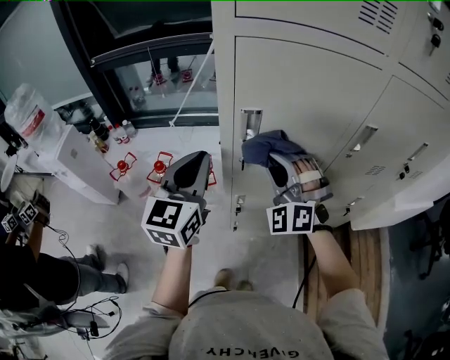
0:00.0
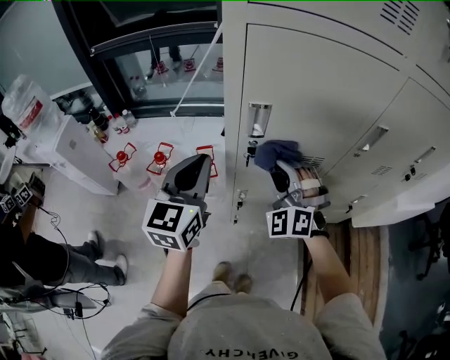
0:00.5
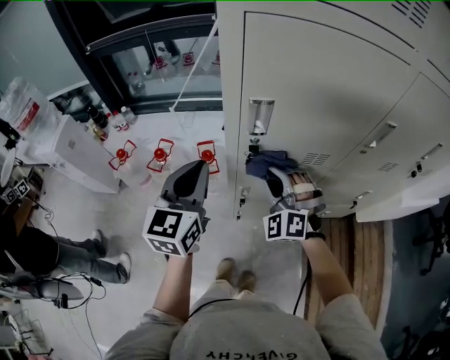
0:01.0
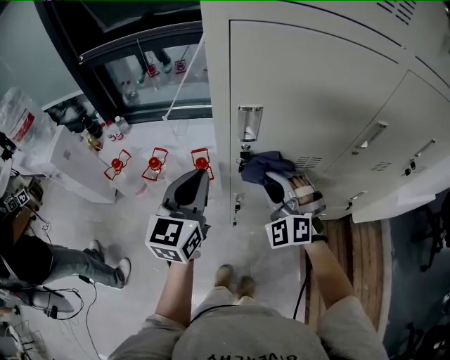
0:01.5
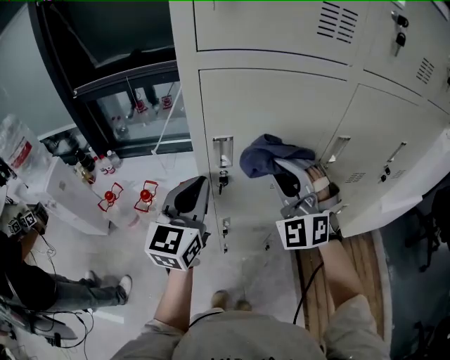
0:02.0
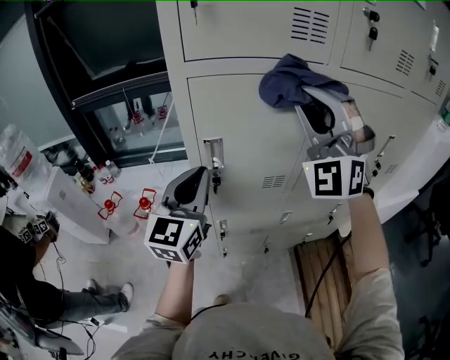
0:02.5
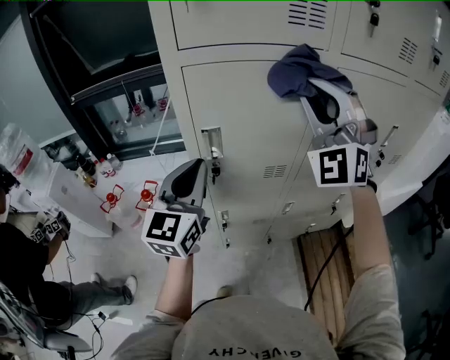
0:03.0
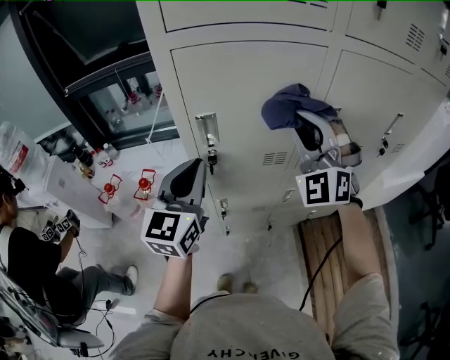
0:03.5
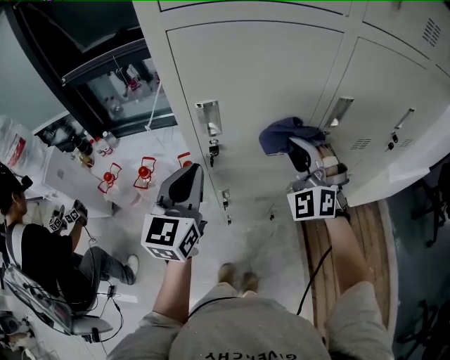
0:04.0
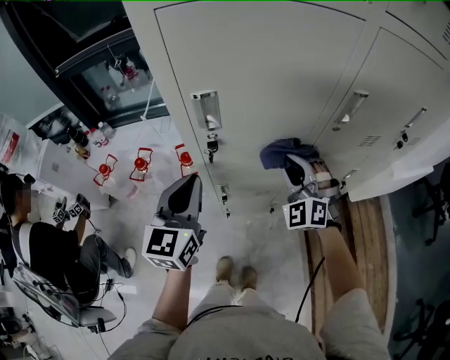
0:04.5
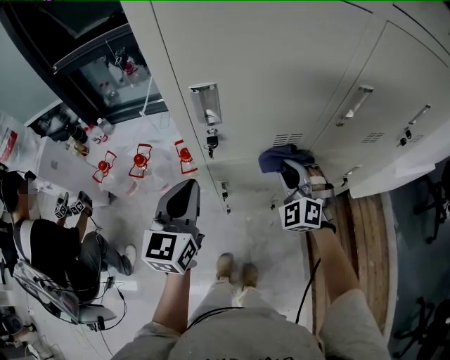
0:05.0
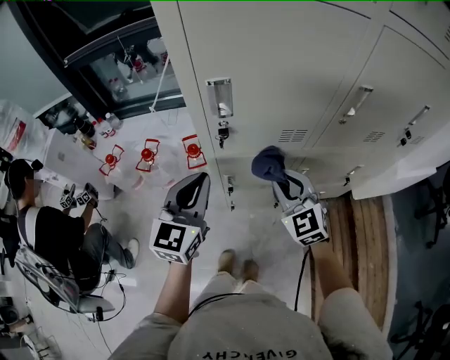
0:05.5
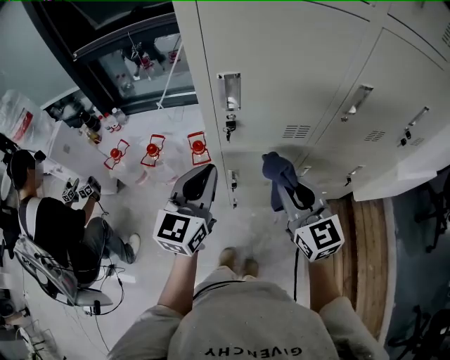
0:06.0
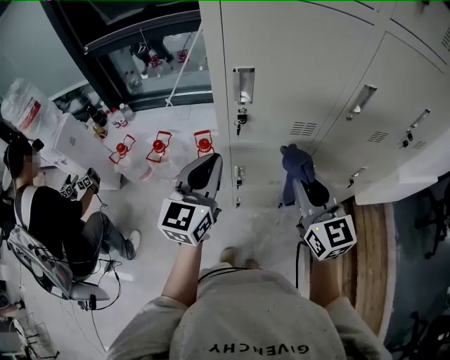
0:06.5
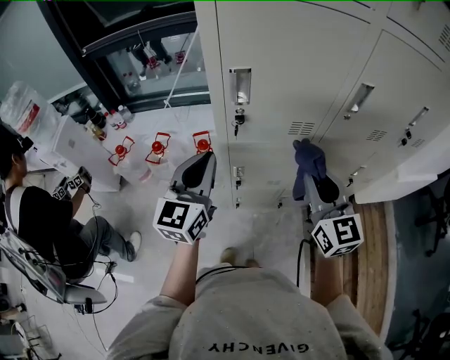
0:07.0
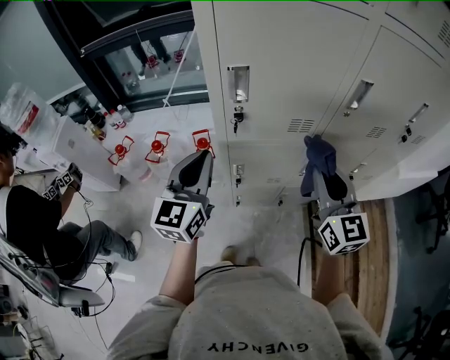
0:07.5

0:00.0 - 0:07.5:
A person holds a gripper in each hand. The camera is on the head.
0:00.0 - 0:02.0: The right gripper moves upward and to the right, roughly 10 cm.
0:02.0 - 0:04.0: The right gripper shifts roughly 5 cm to the right, and travels upward and back again, about 20 cm each way.
0:04.0 - 0:05.5: The right gripper travels downward and backward by some 15 cm, and swivels roughly 40 degrees; the left gripper heads downward, covering some 5 cm.
0:05.5 - 0:07.5: The right gripper travels upward, to the right and backward by approximately 15 cm, and rotates some 30 degrees.

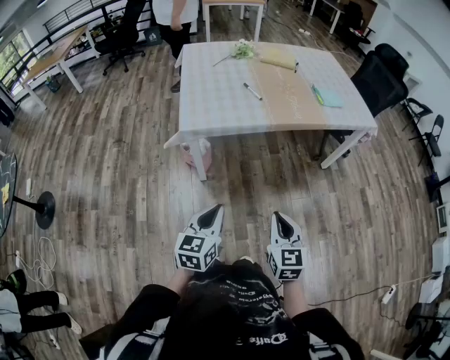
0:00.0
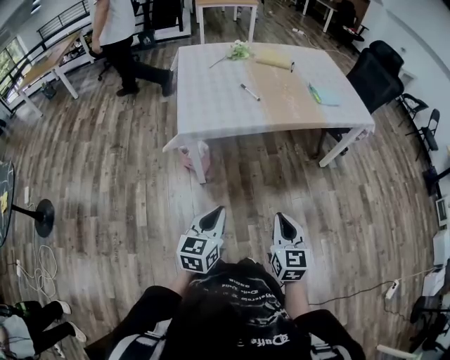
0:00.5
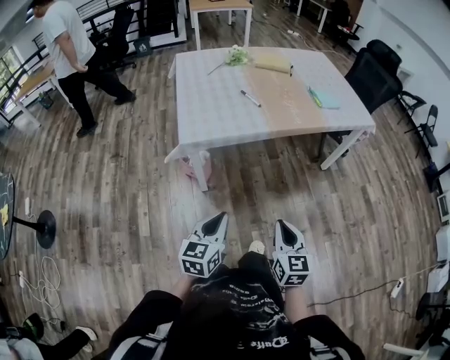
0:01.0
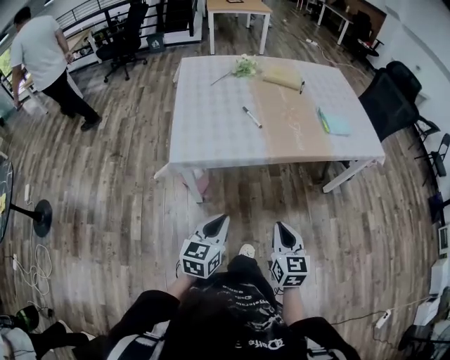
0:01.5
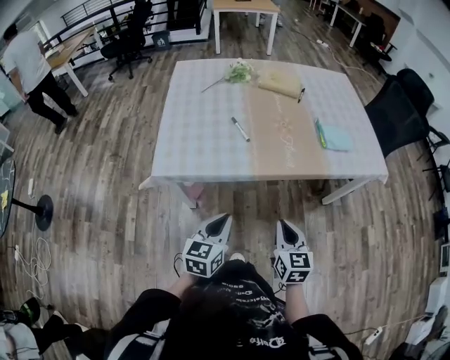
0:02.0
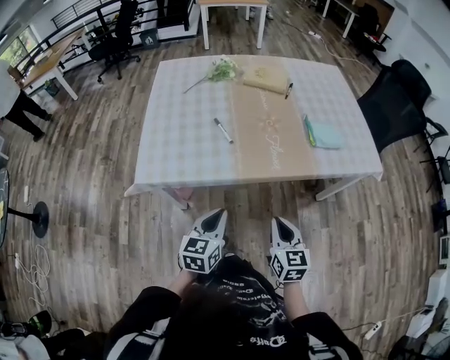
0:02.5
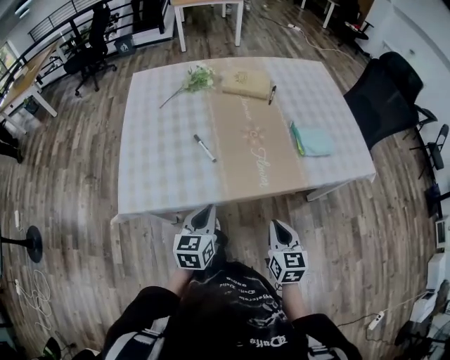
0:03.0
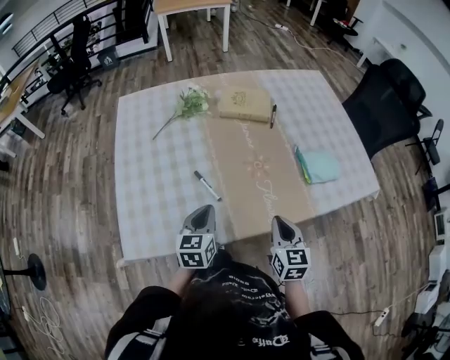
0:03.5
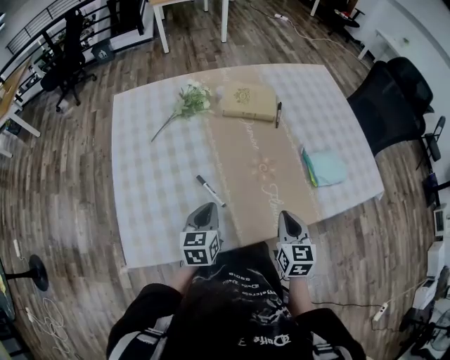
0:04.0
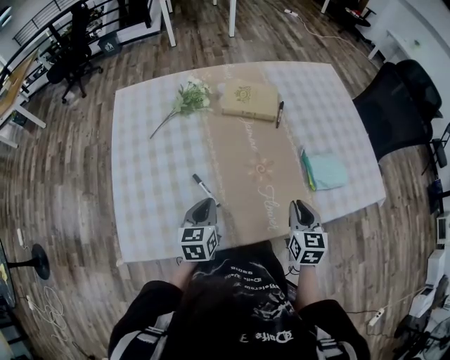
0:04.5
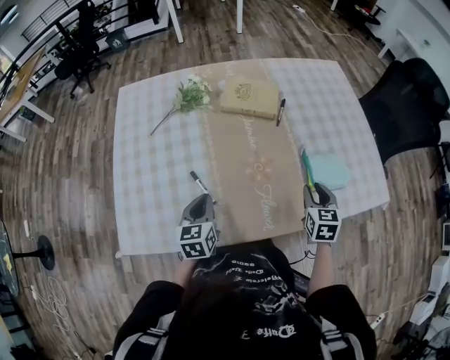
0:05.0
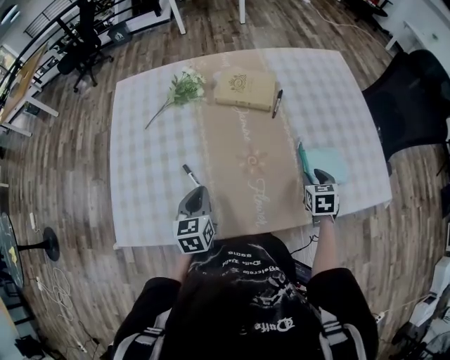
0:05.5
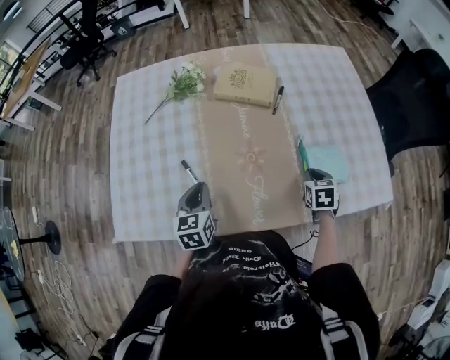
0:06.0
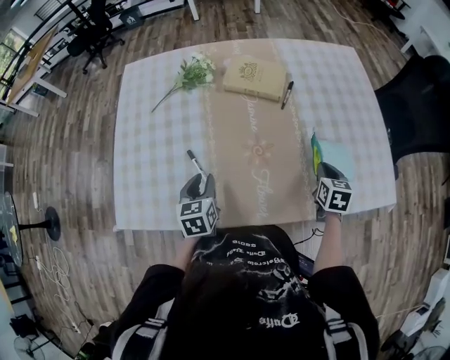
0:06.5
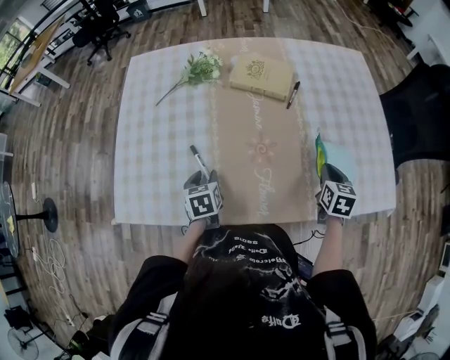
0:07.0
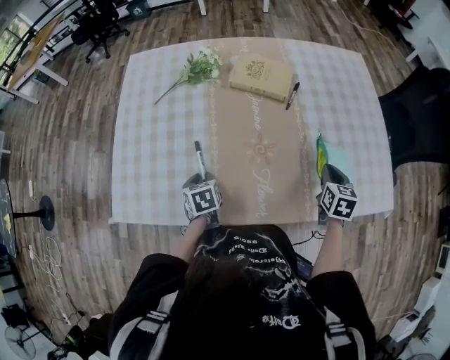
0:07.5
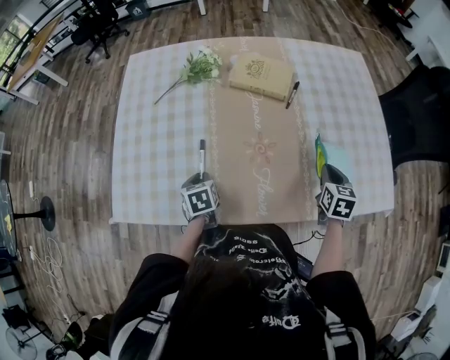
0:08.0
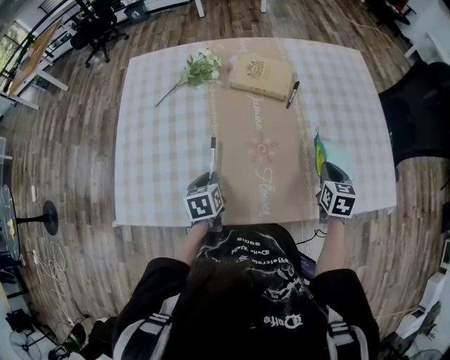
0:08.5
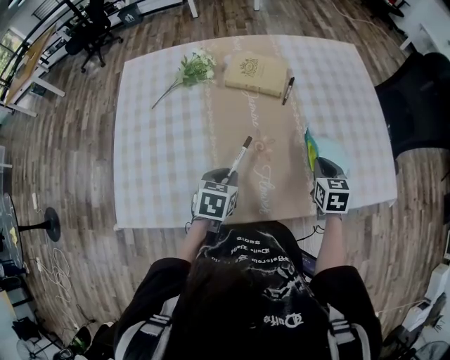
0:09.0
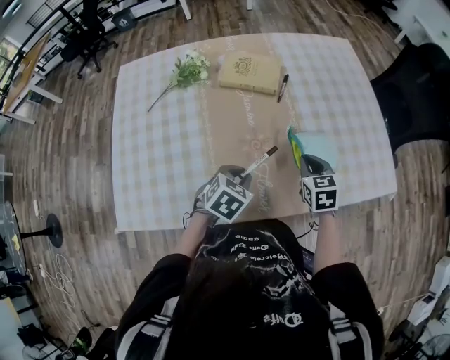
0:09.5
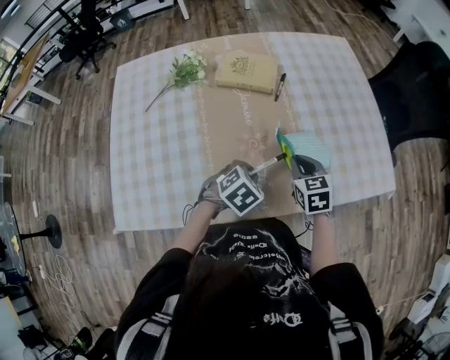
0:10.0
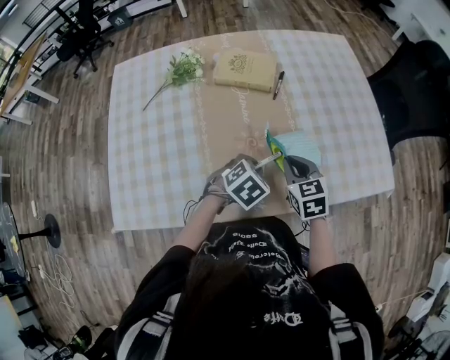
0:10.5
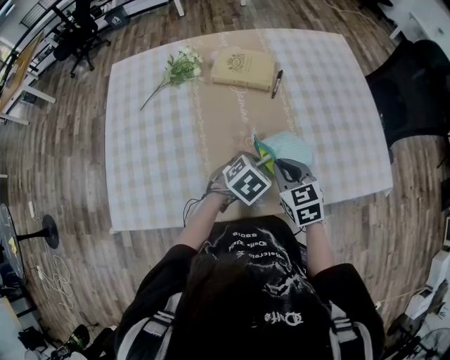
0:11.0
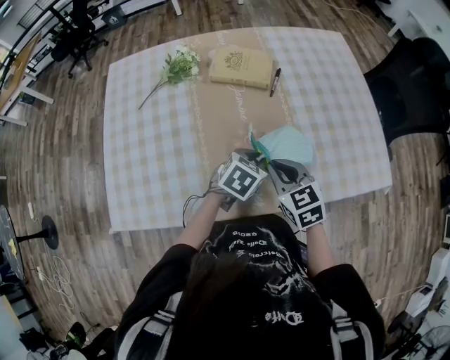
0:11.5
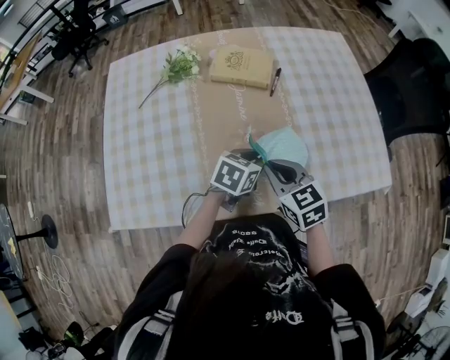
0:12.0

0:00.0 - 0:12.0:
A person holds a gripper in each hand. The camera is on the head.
0:00.0 - 0:02.0: The left gripper shifts roughly 30 cm forward and to the right. The right gripper goes roughly 30 cm forward.
0:02.0 - 0:04.0: Both grippers travel together forward, some 40 cm.
0:04.0 - 0:06.0: The left gripper heads to the right, covering approximately 5 cm, while the right gripper shifts approximately 30 cm to the right, forward and downward, turns by about 30 degrees, and opens, then closes once more.
0:06.0 - 0:08.0: The right gripper is displaced upward by approximately 5 cm, while the left gripper shifts some 10 cm downward, and swivels roughly 30 degrees.
0:08.0 - 0:10.0: The right gripper heads to the left, covering approximately 10 cm. The left gripper heads to the right, covering approximately 20 cm, and twists roughly 60 degrees clockwise, seen from behind.
0:10.0 - 0:12.0: The right gripper is displaced to the left, upward and backward by roughly 10 cm; the left gripper changes place by roughly 5 cm, and changes its angle by roughly 30 degrees.

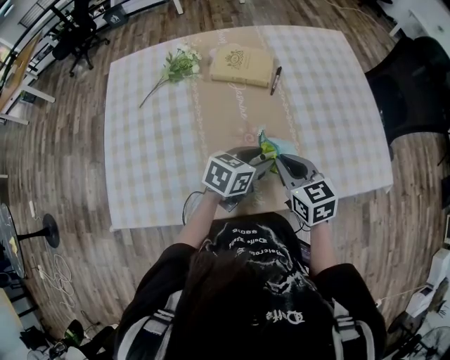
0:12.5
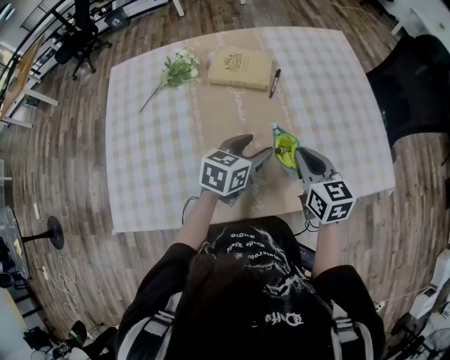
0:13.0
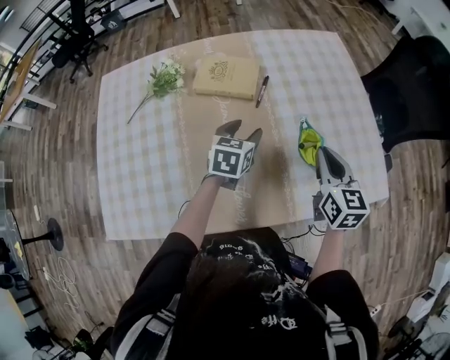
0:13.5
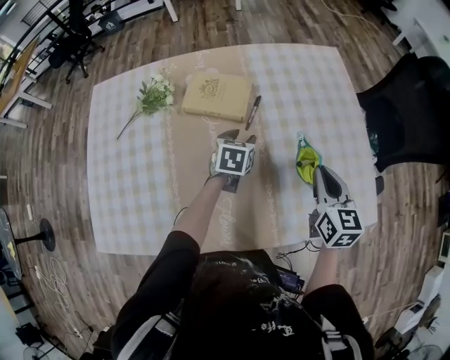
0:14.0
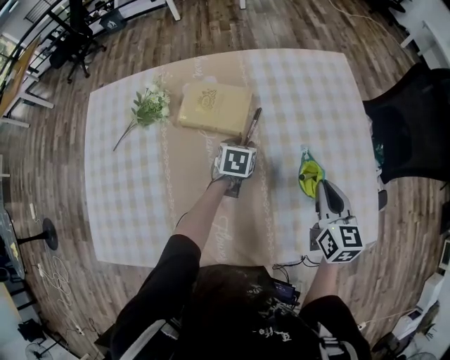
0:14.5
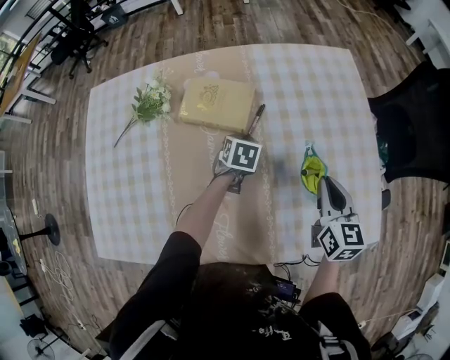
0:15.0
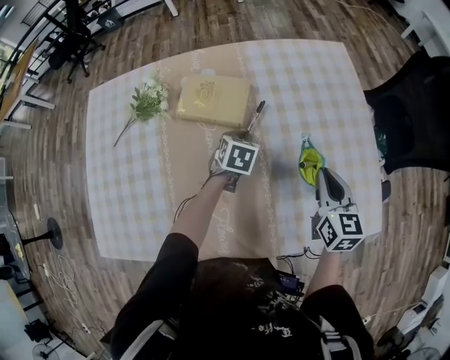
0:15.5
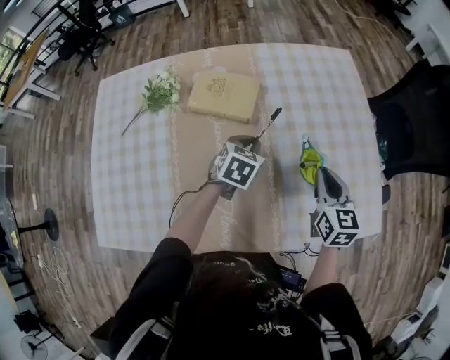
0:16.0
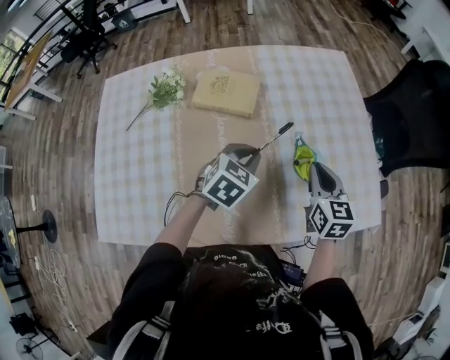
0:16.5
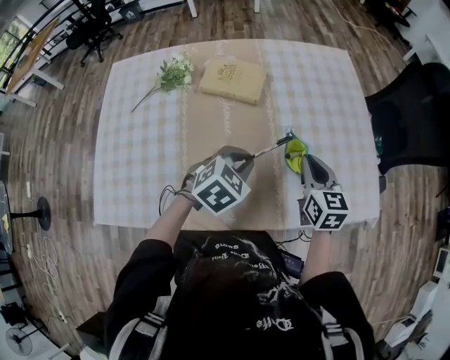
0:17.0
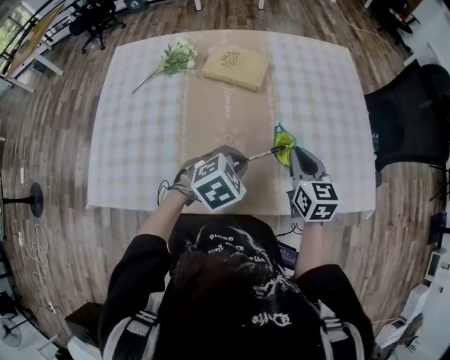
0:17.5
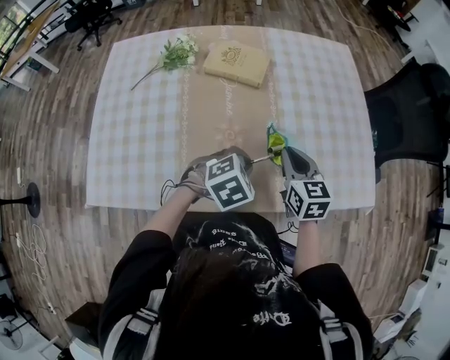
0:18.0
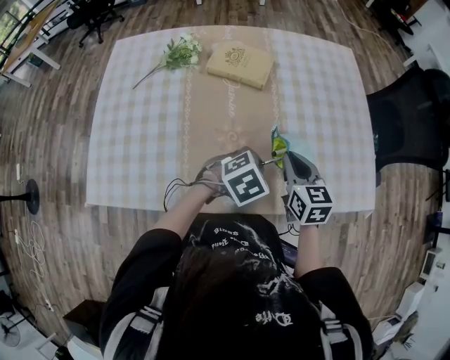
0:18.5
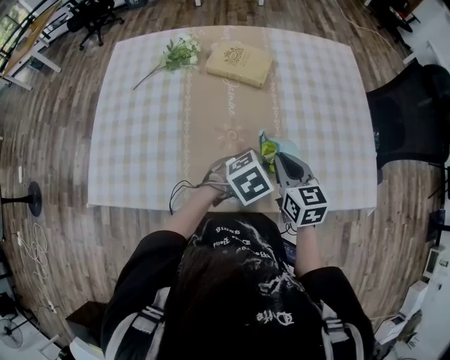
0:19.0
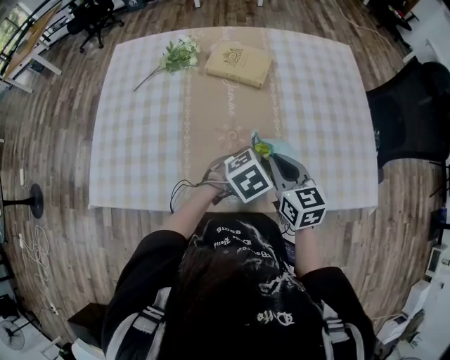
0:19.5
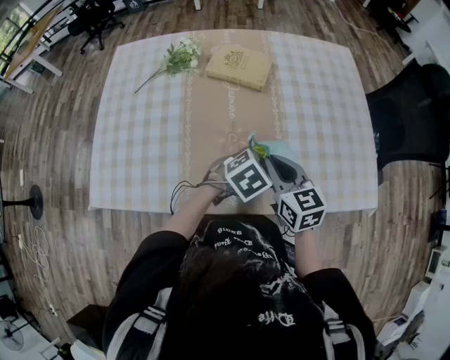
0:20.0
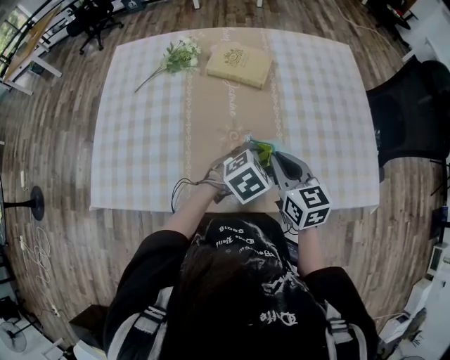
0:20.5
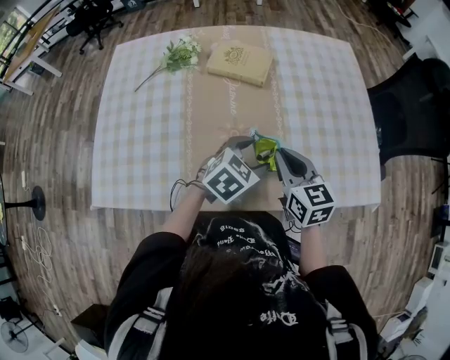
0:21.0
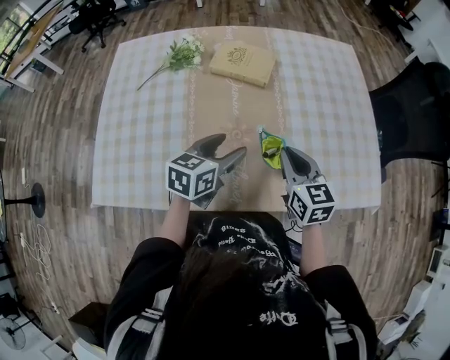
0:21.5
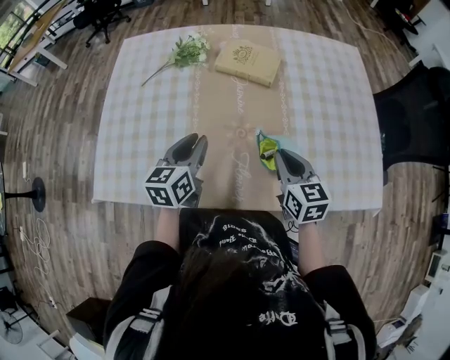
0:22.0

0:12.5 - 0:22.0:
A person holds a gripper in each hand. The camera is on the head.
0:12.5 - 0:14.5: The left gripper is displaced forward by roughly 30 cm, and turns by some 30 degrees. Meanwhile the right gripper shifts some 30 cm forward and to the right, and swivels about 20 degrees.
0:14.5 - 0:16.5: The left gripper goes some 20 cm backward and upward, and changes its angle by approximately 30 degrees. The right gripper is displaced backward by approximately 5 cm.
0:16.5 - 0:18.0: The left gripper is displaced backward by about 15 cm, and rotates roughly 20 degrees. The right gripper heads backward and to the left, covering approximately 15 cm.
0:18.0 - 0:20.0: The right gripper changes place by roughly 5 cm.
0:20.0 - 0:22.0: The left gripper goes some 20 cm to the left, angles its fingers upward, by about 40 degrees, and opens, then closes again.
